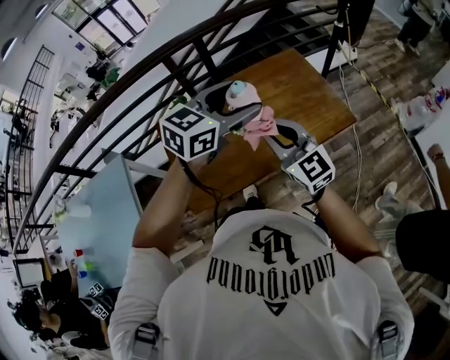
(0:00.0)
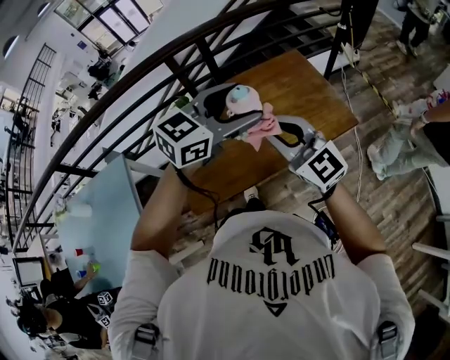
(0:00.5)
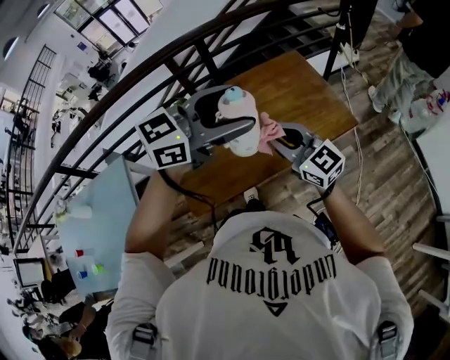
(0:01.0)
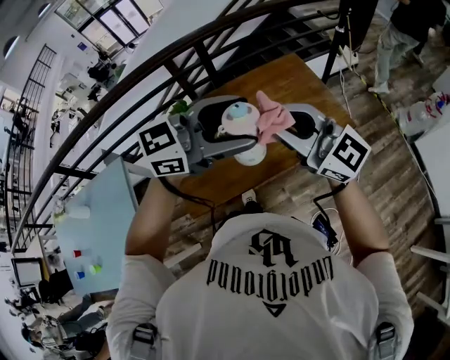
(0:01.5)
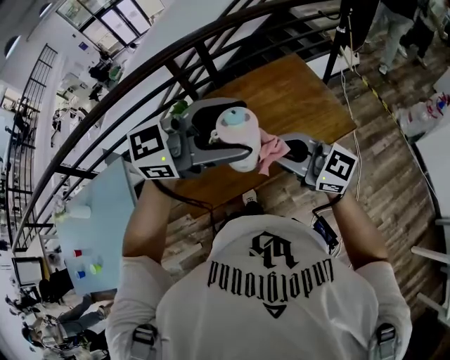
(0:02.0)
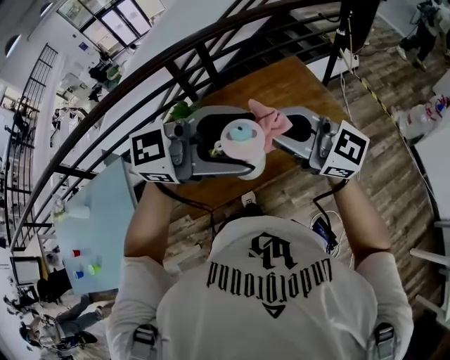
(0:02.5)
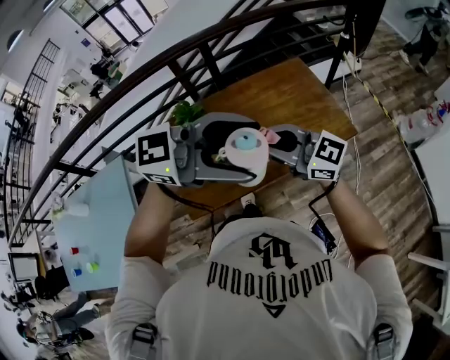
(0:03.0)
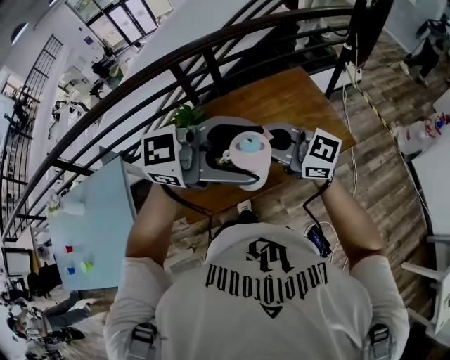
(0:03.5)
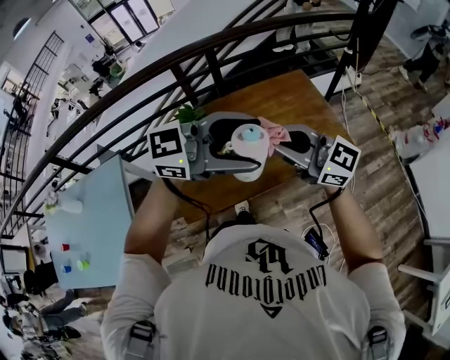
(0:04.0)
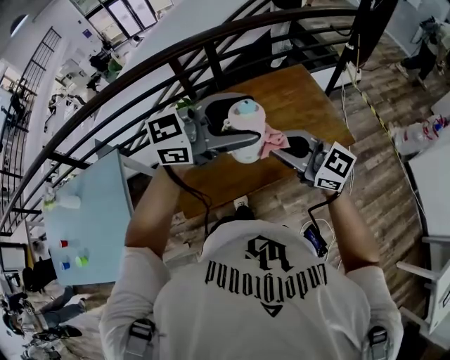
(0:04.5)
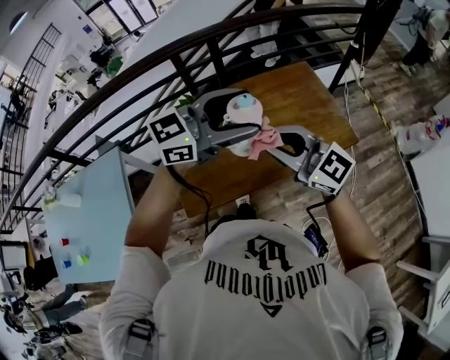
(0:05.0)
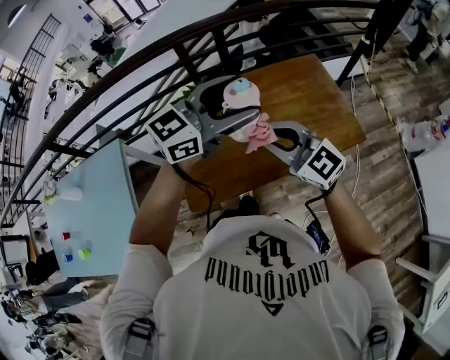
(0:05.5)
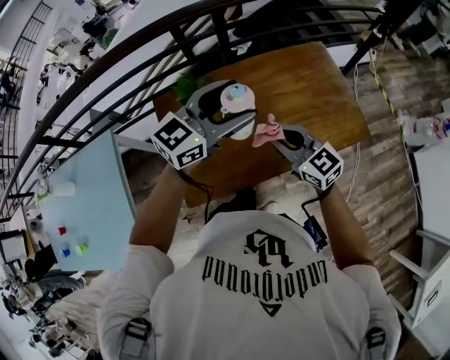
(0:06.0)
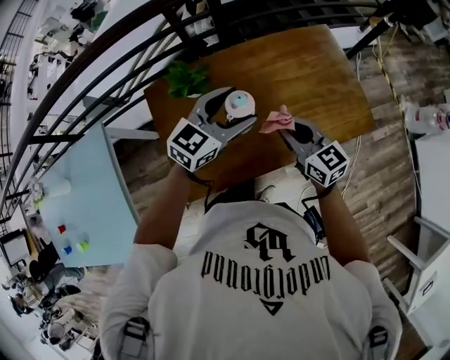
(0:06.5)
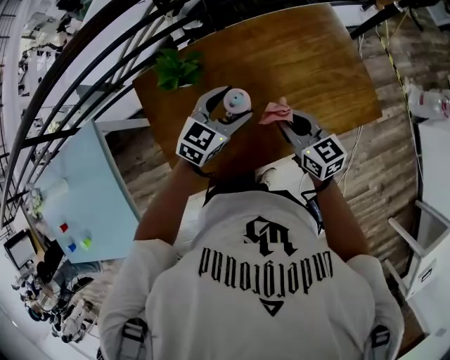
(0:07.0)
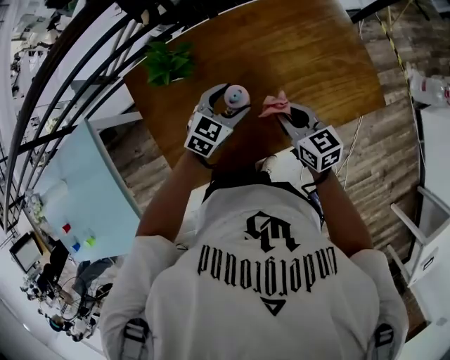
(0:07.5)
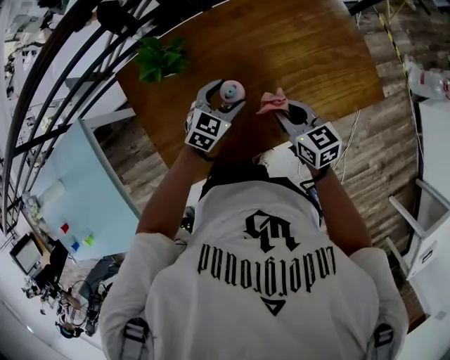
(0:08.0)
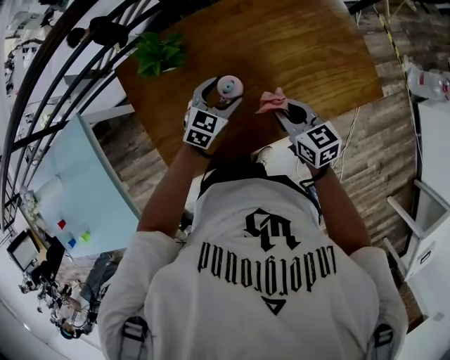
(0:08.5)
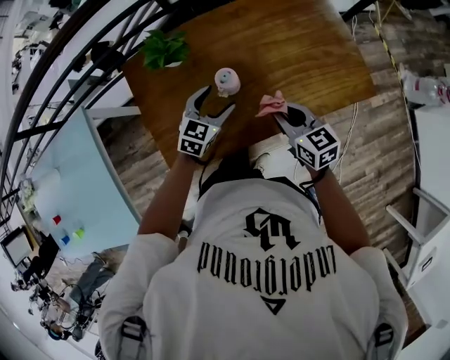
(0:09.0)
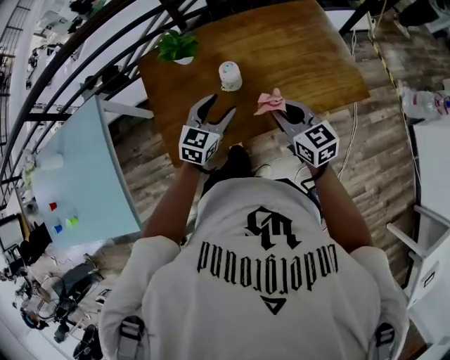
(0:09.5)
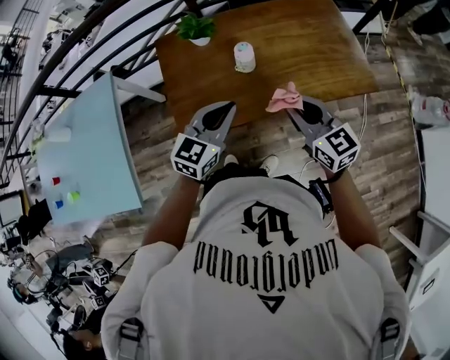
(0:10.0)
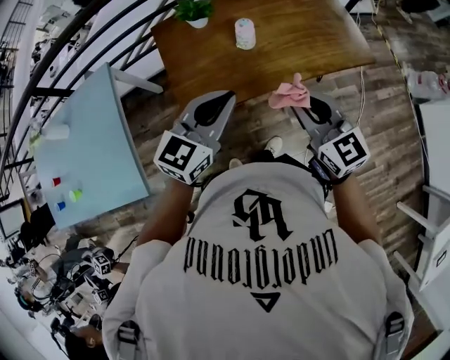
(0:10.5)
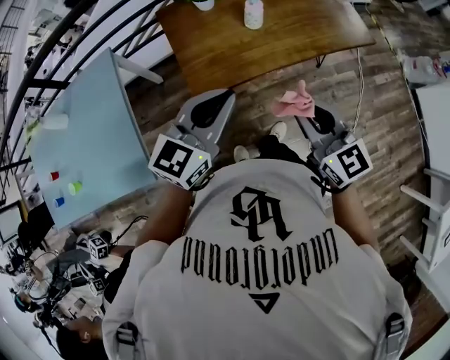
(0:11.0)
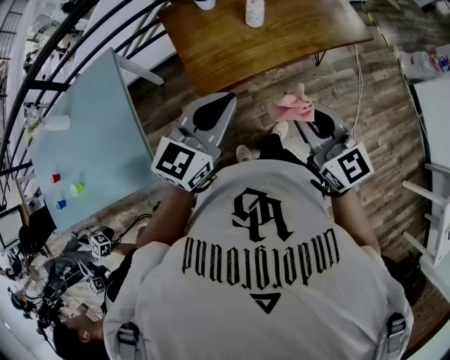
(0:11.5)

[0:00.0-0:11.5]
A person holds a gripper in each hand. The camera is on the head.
0:00.0 to 0:02.0: The left gripper shifts by about 15 cm, and rotates roughly 30 degrees; the right gripper swings up and down, approximately 15 cm each way, with 3 reversals, and changes its angle by some 30 degrees.
0:04.0 to 0:06.0: The left gripper changes place by some 20 cm, and swivels about 30 degrees. The right gripper shifts roughly 15 cm downward, and turns by roughly 30 degrees.
0:06.0 to 0:07.5: The right gripper is displaced downward and forward by approximately 20 cm, and rotates some 30 degrees. The left gripper moves downward, approximately 30 cm, and tips its fingers downward by about 30 degrees.
0:07.5 to 0:09.5: The right gripper heads backward and upward, covering about 15 cm. The left gripper shifts roughly 15 cm backward.
0:09.5 to 0:11.5: Both grippers move backward and upward, approximately 35 cm. The left gripper closes.

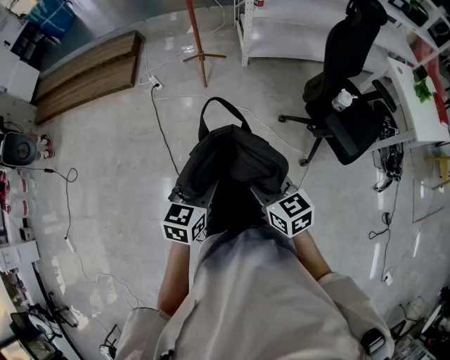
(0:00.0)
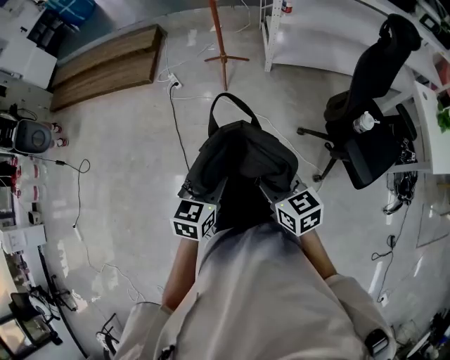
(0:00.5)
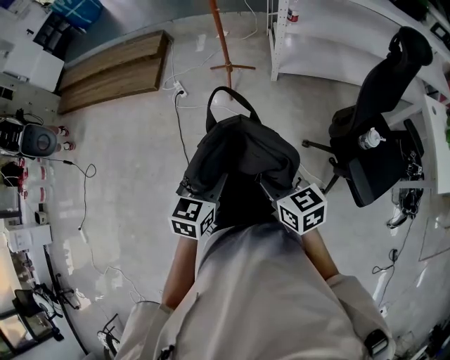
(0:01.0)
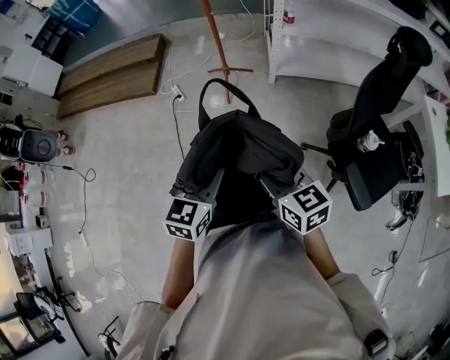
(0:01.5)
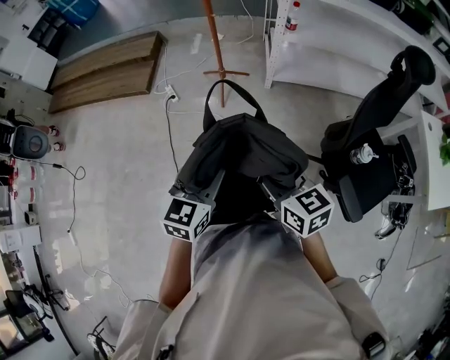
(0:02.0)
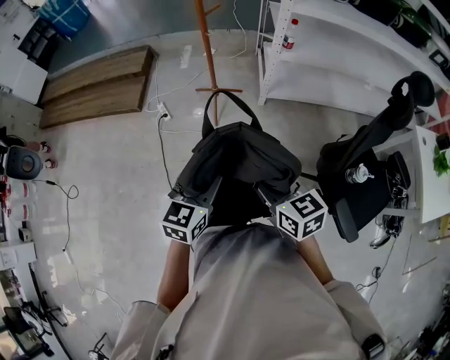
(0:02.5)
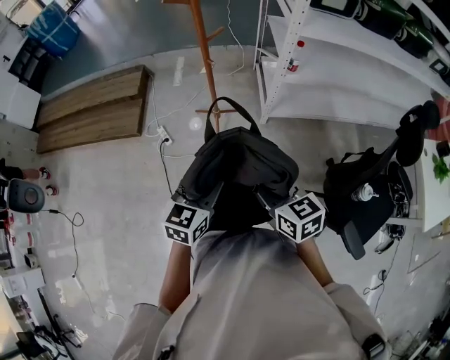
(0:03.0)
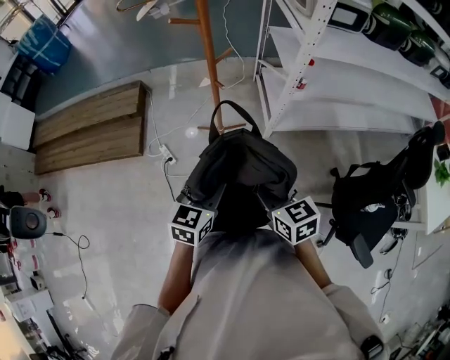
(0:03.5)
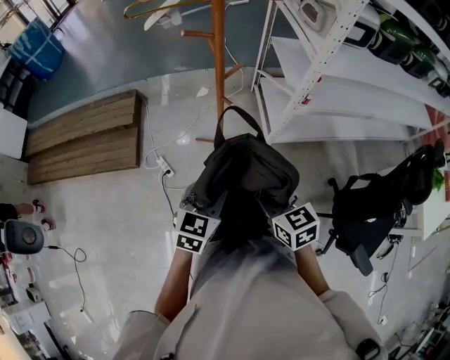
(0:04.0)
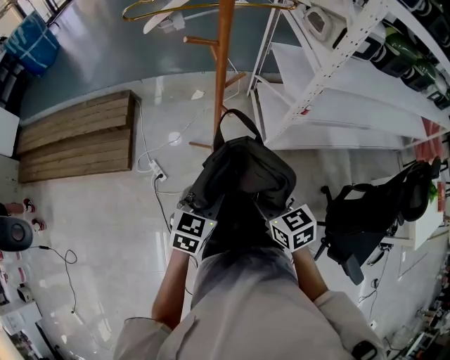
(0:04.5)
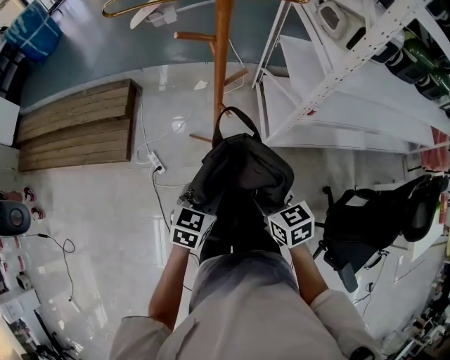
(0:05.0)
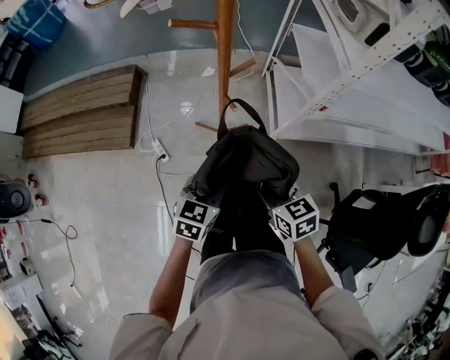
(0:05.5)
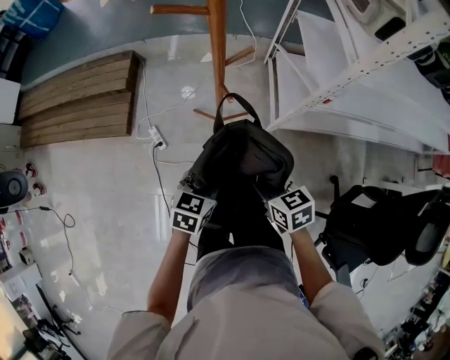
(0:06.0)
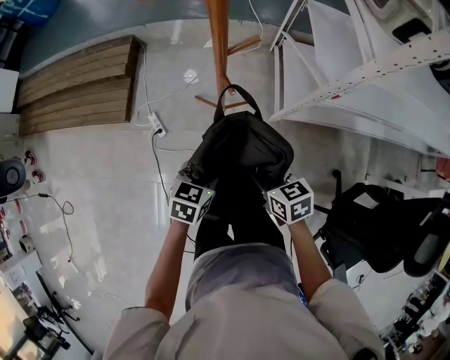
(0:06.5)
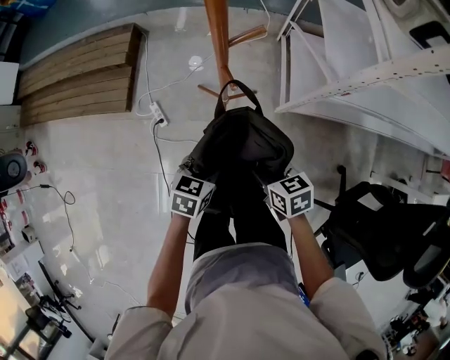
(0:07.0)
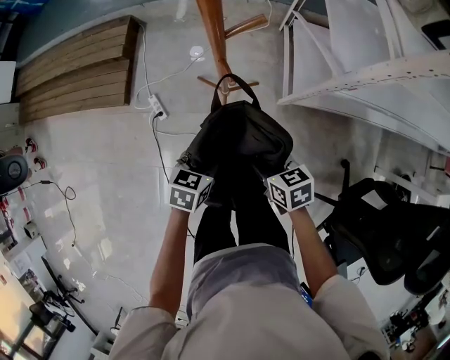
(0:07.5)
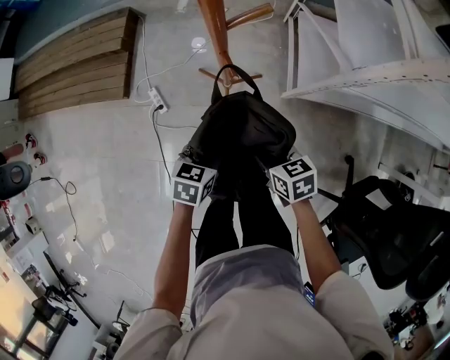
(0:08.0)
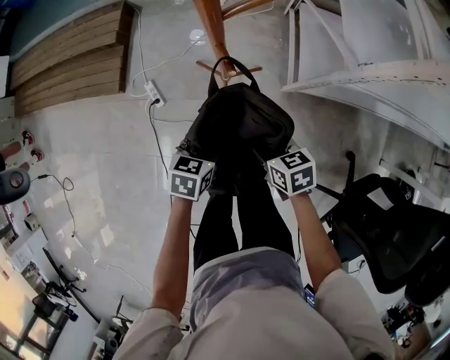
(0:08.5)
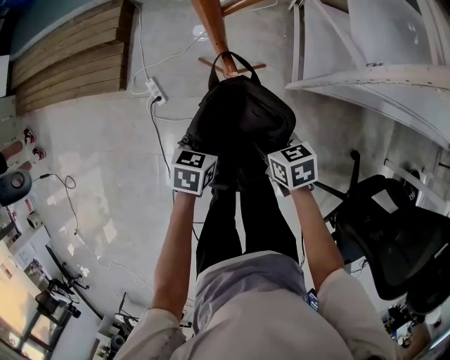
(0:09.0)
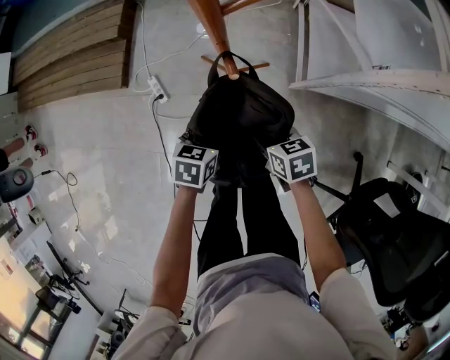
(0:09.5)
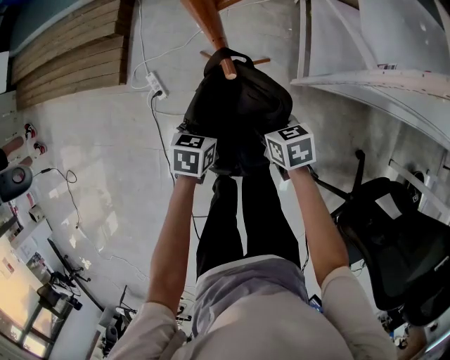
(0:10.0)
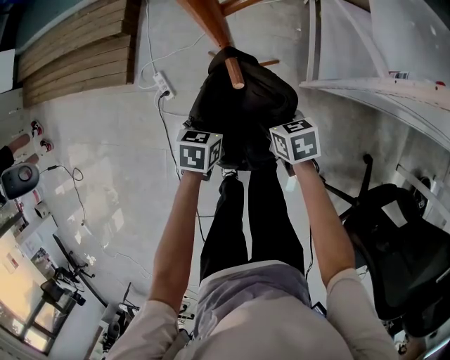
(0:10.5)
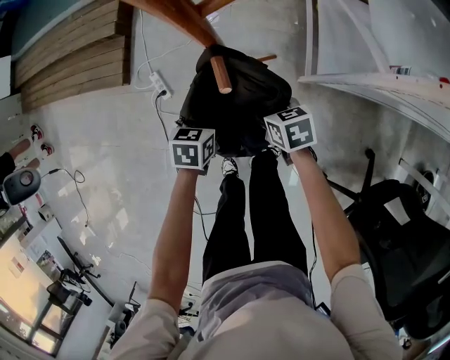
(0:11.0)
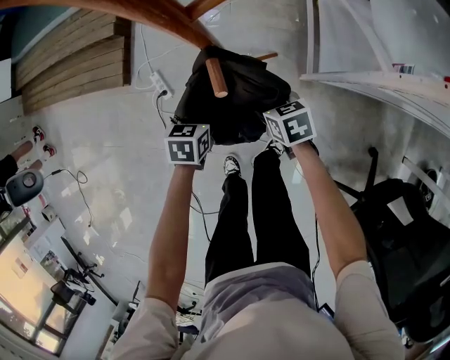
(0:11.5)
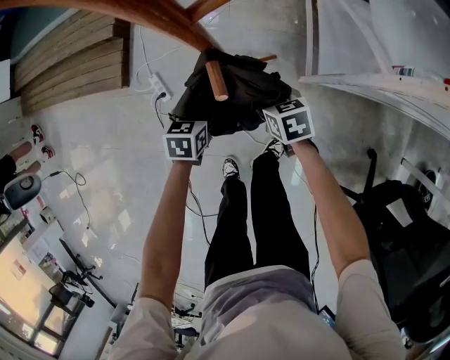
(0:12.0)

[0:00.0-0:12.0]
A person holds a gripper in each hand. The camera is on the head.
0:00.0 to 0:02.0: Both grippers move forward, about 25 cm.
0:02.0 to 0:04.0: The two grippers travel together, forward, about 40 cm.
0:04.0 to 0:06.0: Both grippers move downward and forward, approximately 20 cm.
0:06.0 to 0:08.0: The left gripper shifts roughly 15 cm downward. The right gripper travels downward and forward by about 15 cm.
0:08.0 to 0:10.0: The grippers both shift downward and forward by roughly 10 cm.
0:10.0 to 0:12.0: The grippers both shift forward and downward by some 10 cm.

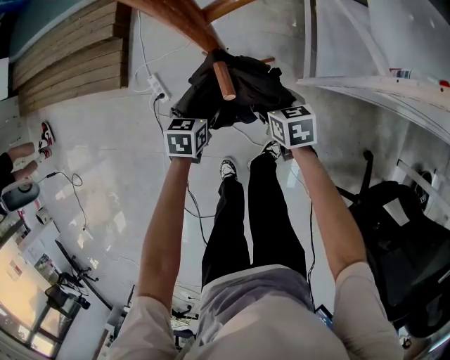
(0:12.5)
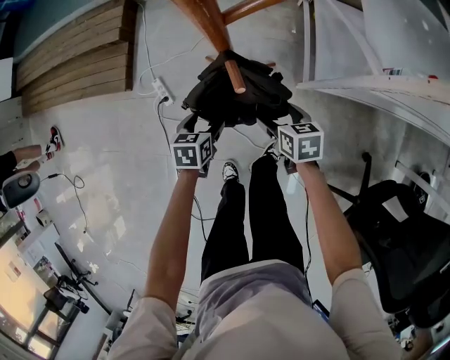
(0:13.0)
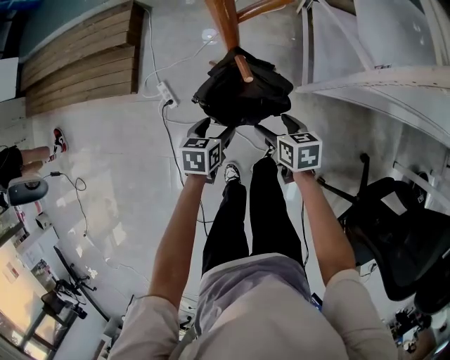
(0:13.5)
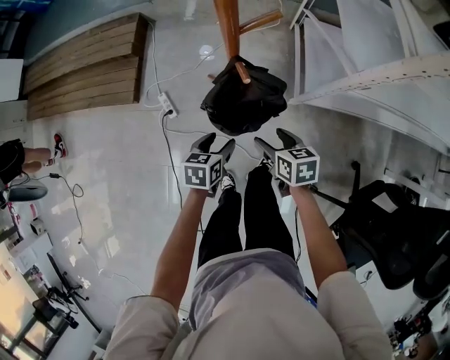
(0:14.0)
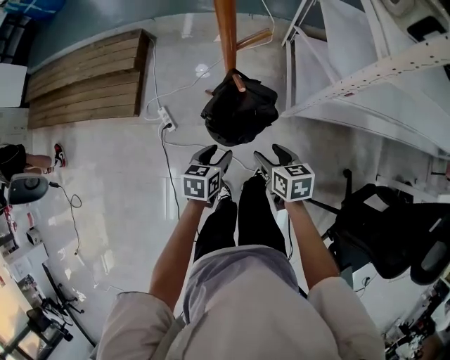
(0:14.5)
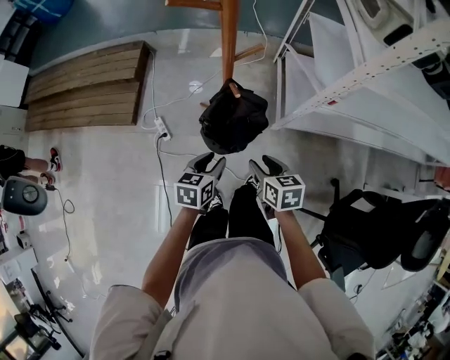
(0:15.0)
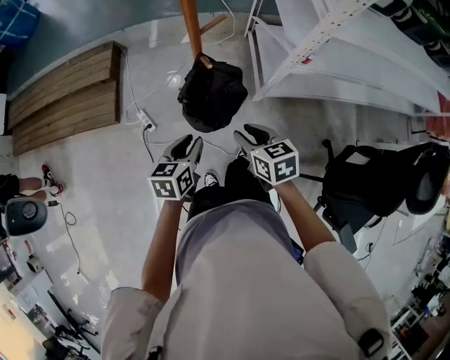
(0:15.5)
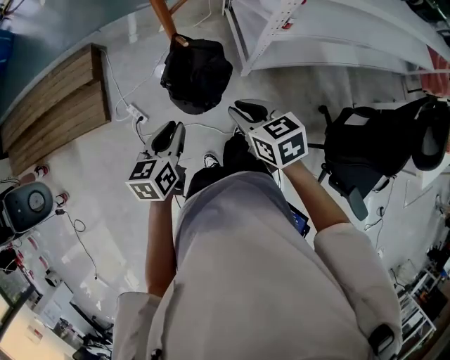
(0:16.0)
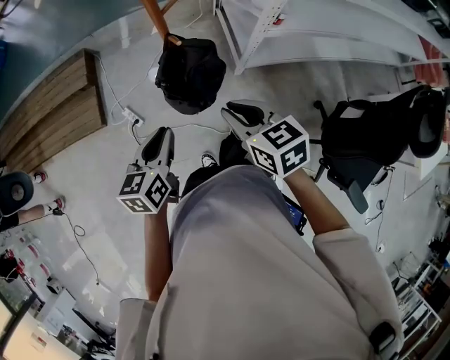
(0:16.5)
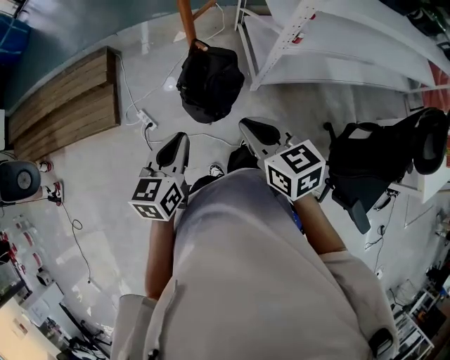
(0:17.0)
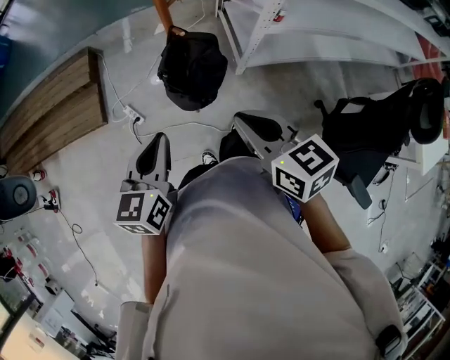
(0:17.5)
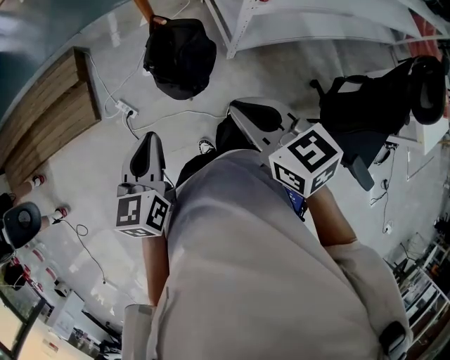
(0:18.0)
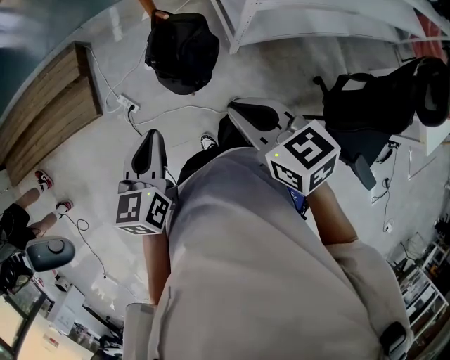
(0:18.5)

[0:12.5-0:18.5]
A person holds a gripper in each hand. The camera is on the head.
0:12.5 to 0:14.5: The two grippers go roughly 25 cm upward and backward. The left gripper closes.
0:14.5 to 0:16.5: The two grippers go about 20 cm upward and backward. The left gripper closes up. The right gripper closes.
0:16.5 to 0:18.5: Both grippers move backward, about 5 cm.
